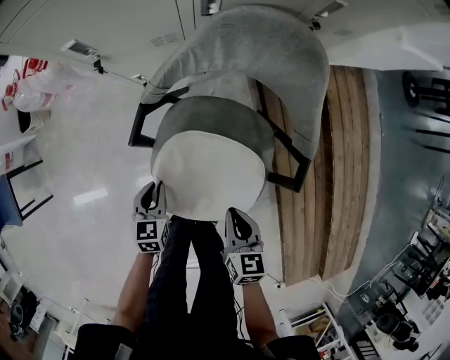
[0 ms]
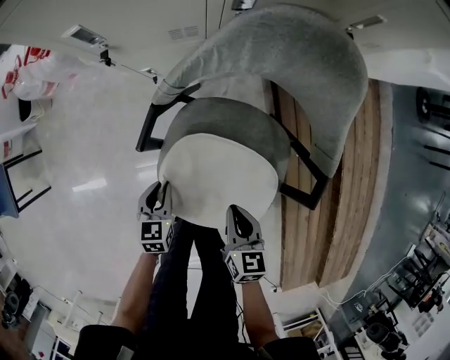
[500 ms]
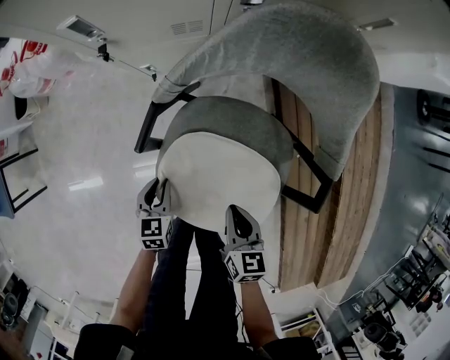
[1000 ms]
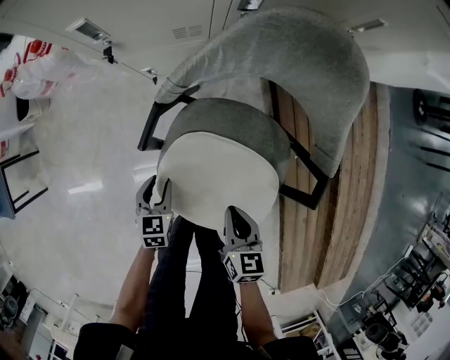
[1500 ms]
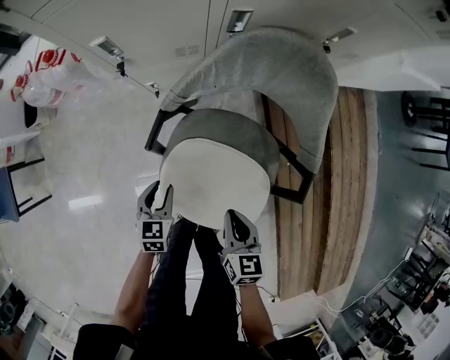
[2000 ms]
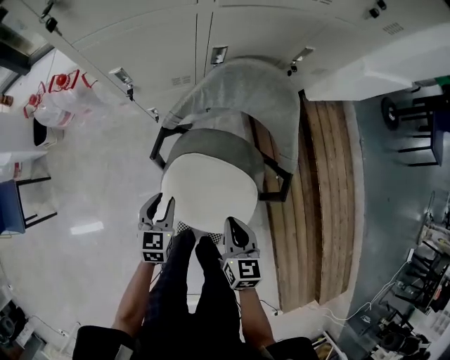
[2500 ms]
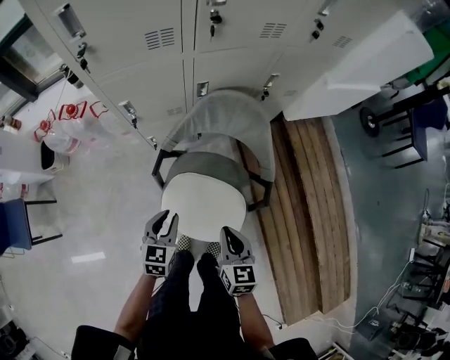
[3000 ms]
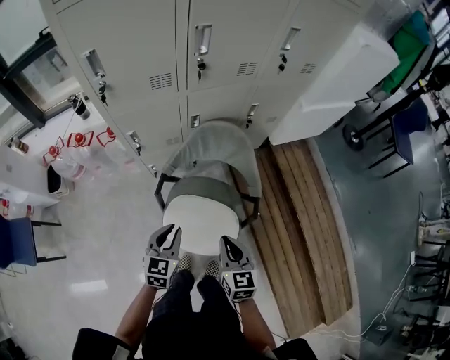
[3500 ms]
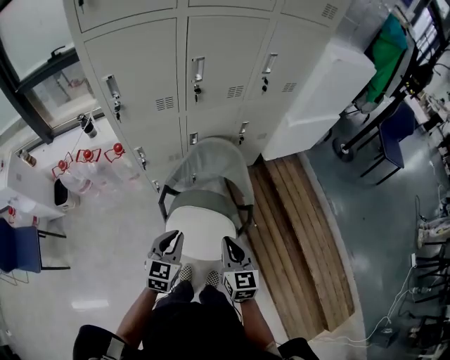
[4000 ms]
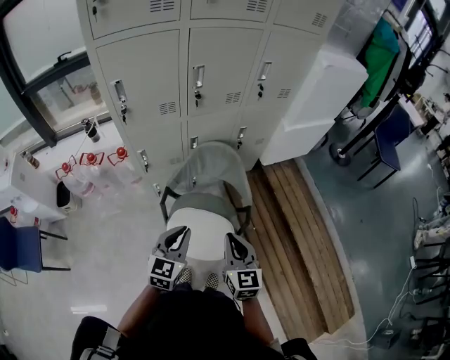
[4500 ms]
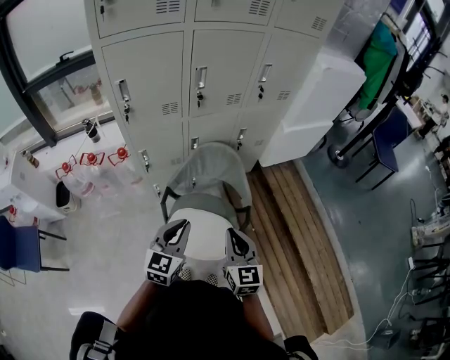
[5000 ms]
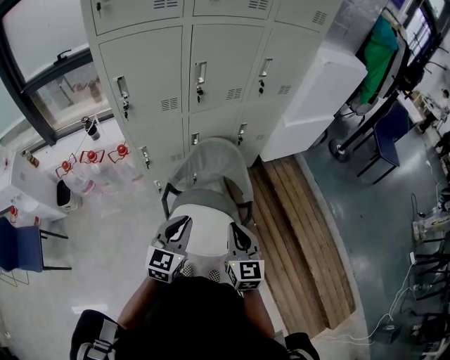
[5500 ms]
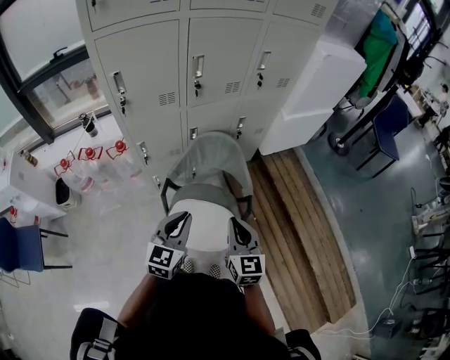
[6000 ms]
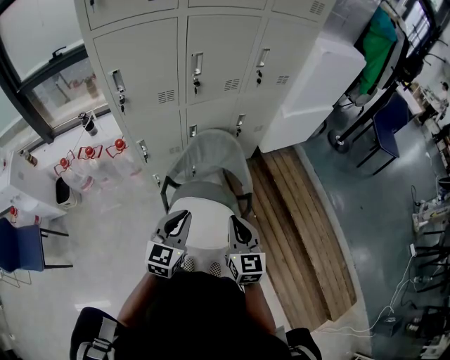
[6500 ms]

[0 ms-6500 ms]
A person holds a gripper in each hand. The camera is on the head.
0 ms to 2000 ms: The left gripper goes downward and returns, some 10 cm each way, and opens its fingers, while the right gripper moves approximately 5 cm downward and comes back.
2000 ms to 4500 ms: The two grippers go roughly 40 cm upward. The left gripper changes its angle by approximately 30 degrees, and closes up. Meanwhile the right gripper changes its angle by roughly 30 degrees.
4500 ms to 6500 ms: The grippers stay close to where they were, moving slightly.

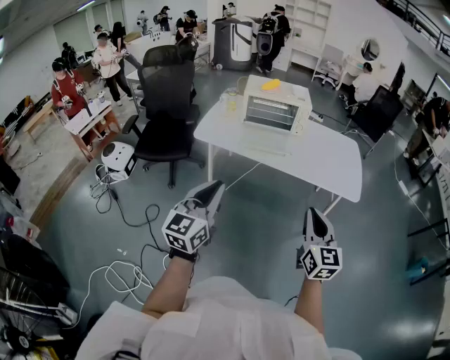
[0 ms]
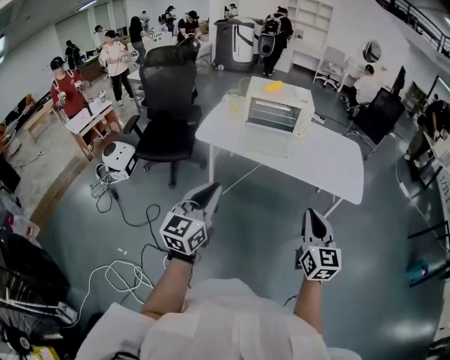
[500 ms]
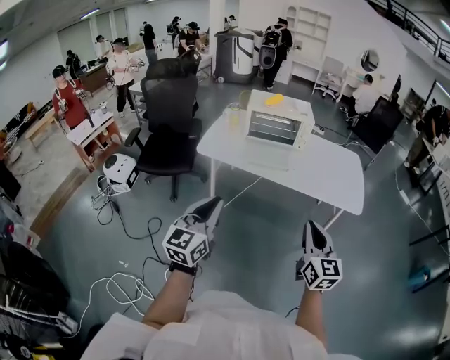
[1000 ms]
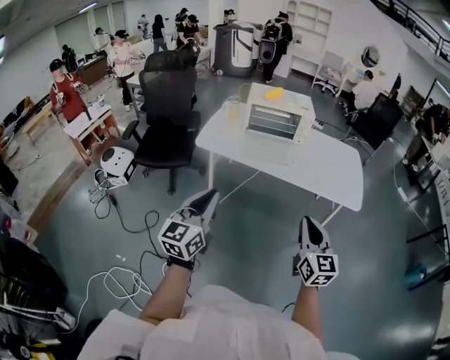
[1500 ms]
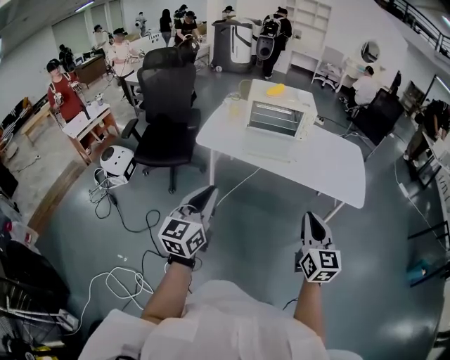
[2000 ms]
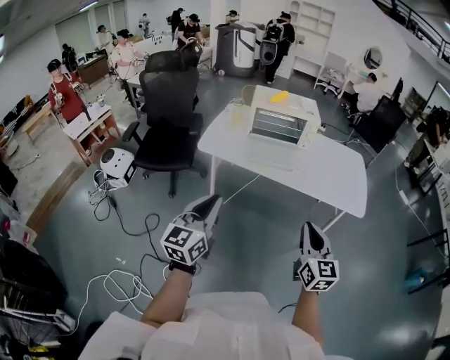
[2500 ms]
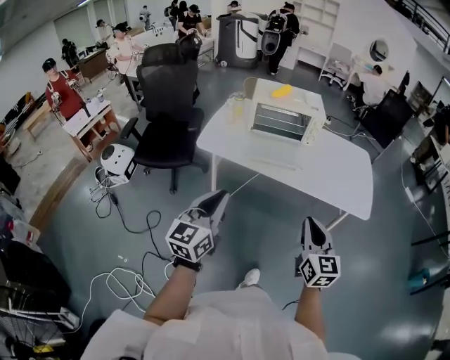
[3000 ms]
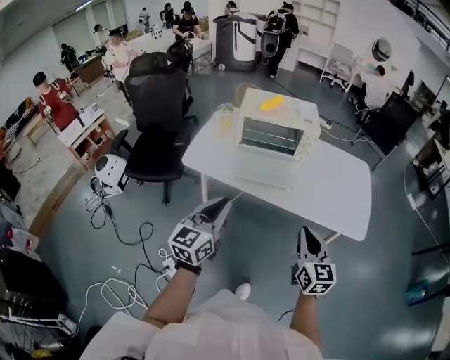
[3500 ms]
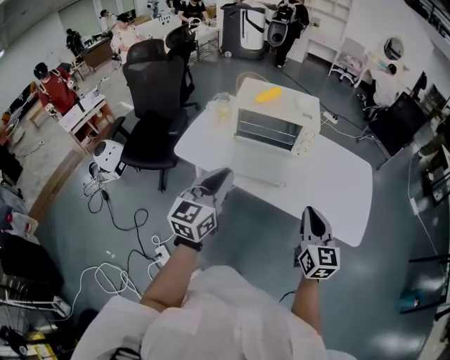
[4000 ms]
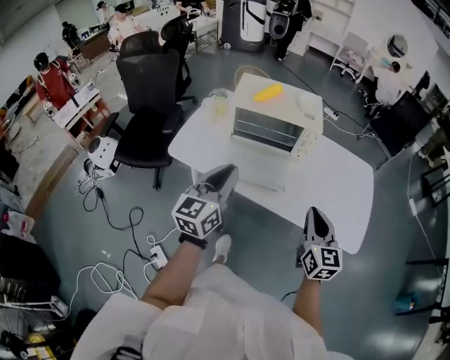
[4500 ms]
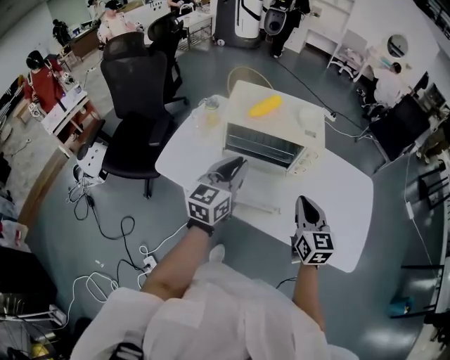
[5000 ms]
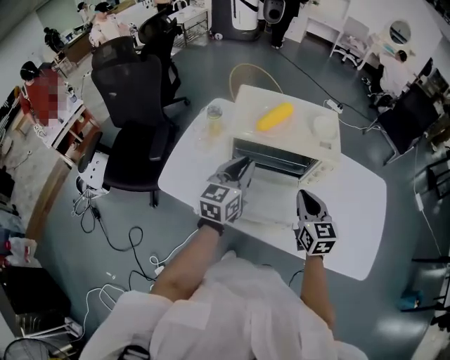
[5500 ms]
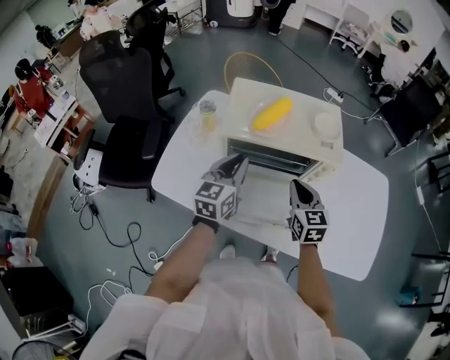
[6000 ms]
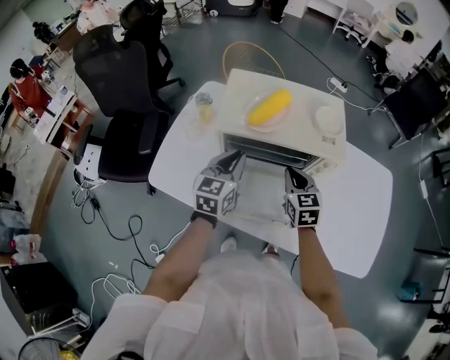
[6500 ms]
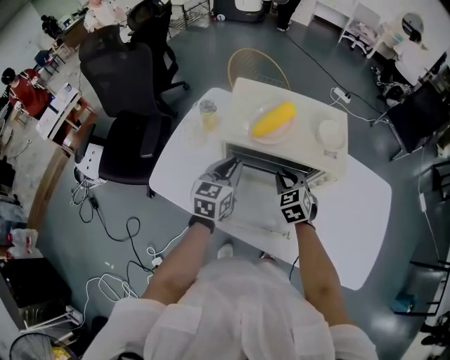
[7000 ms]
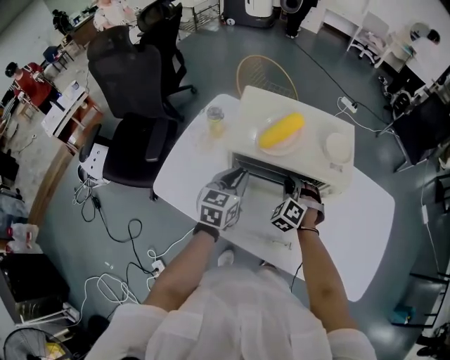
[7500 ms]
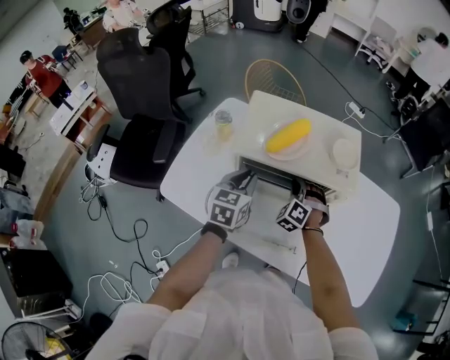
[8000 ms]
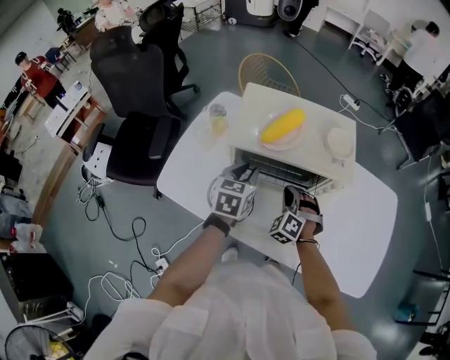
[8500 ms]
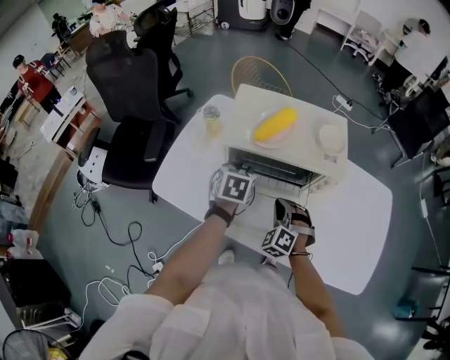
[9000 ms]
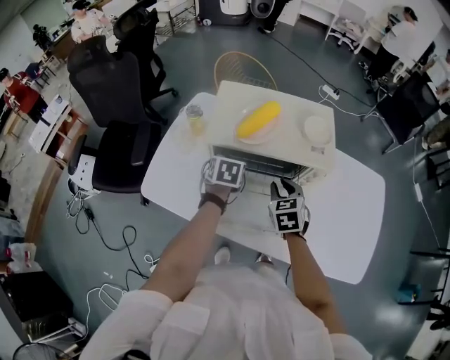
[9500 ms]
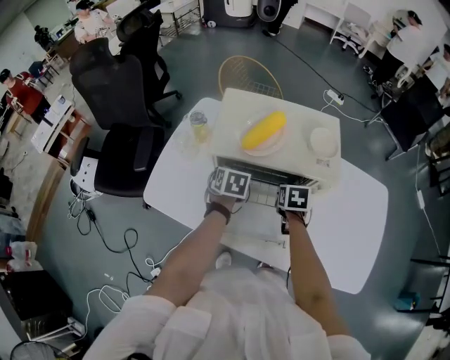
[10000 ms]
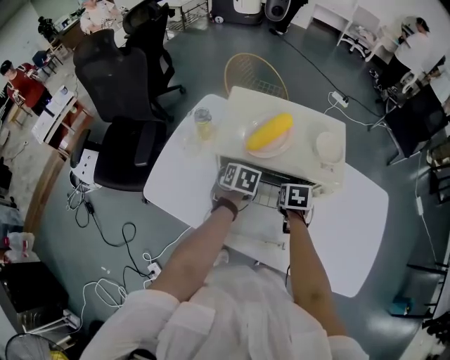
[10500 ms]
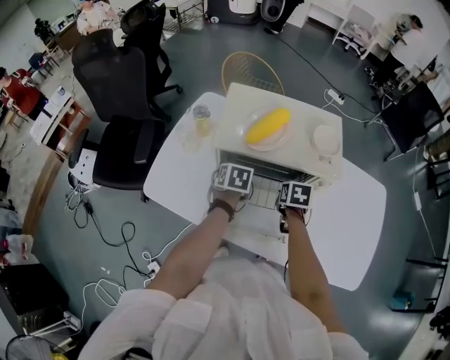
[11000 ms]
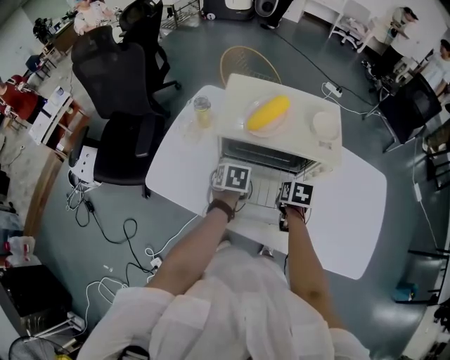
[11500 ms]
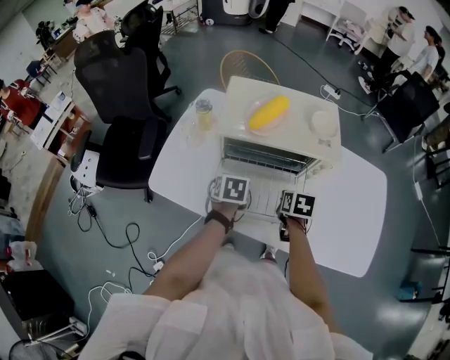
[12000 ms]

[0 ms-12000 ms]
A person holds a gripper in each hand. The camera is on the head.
0 ms to 2000 ms: The left gripper travels to the left by some 5 cm.
2000 ms to 4000 ms: The left gripper heads forward and to the right, covering about 30 cm; the right gripper heads forward, covering approximately 30 cm.
4000 ms to 6000 ms: Both grippers move forward, some 35 cm.
6000 ms to 8000 ms: The left gripper is displaced downward by roughly 5 cm, while the right gripper goes about 15 cm forward and downward, and rotates around the line of its fingers by some 60 degrees, counterclockwise from behind.
8000 ms to 10000 ms: The right gripper shifts roughly 5 cm to the right, travels backward and back again, approximately 10 cm each way, and twists approximately 70 degrees clockwise, seen from behind, while the left gripper shifts approximately 10 cm downward, and changes its angle by some 30 degrees.
10000 ms to 12000 ms: The two grippers go approximately 10 cm backward.

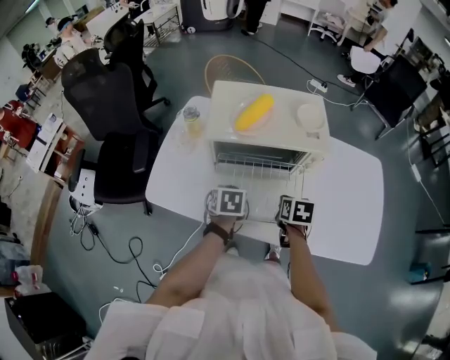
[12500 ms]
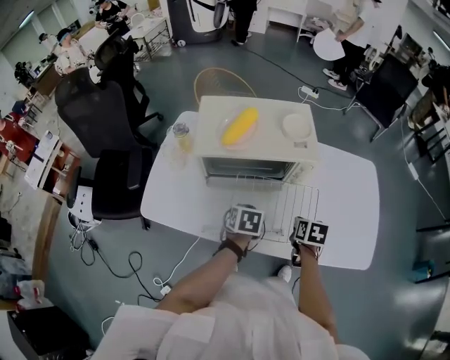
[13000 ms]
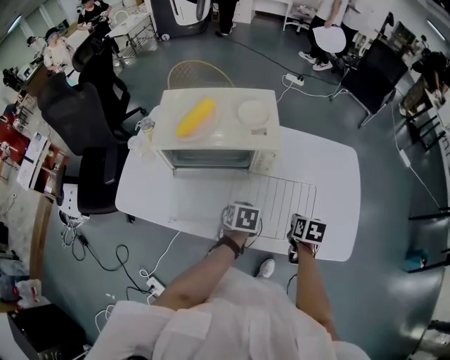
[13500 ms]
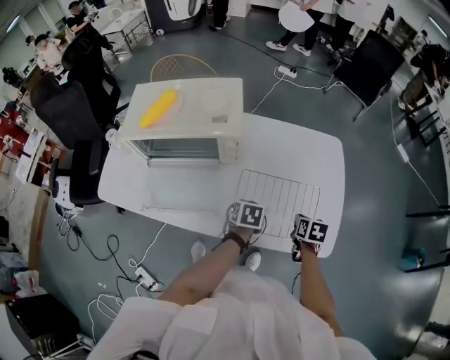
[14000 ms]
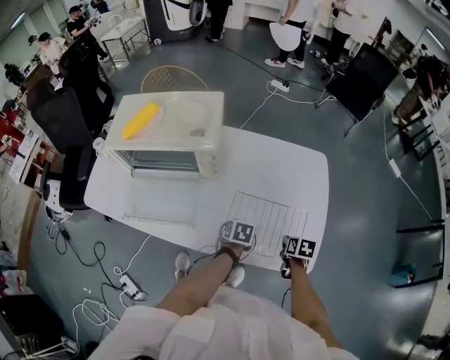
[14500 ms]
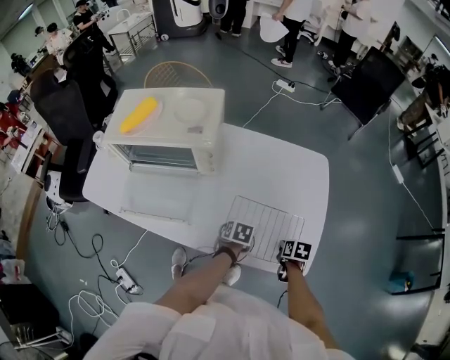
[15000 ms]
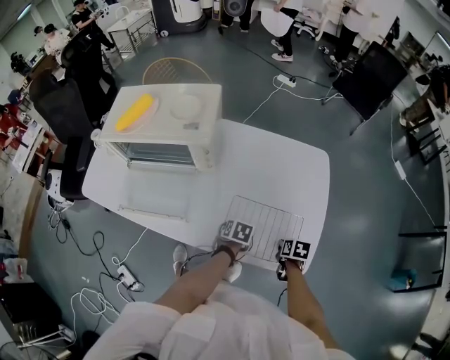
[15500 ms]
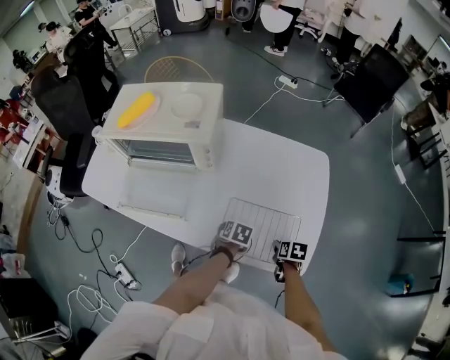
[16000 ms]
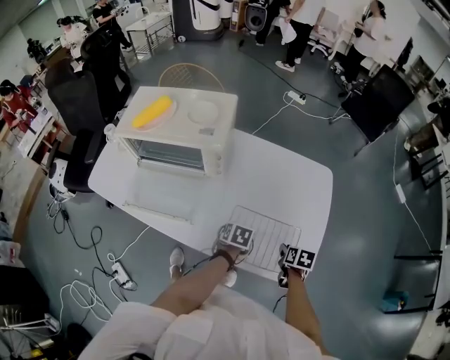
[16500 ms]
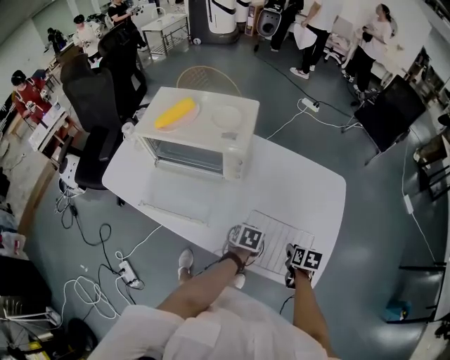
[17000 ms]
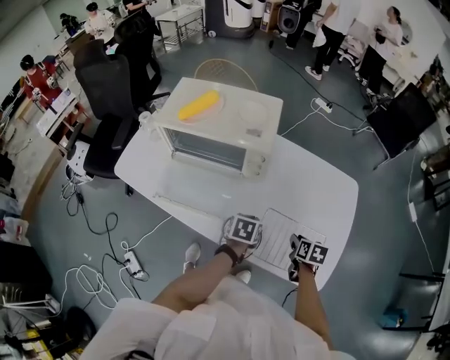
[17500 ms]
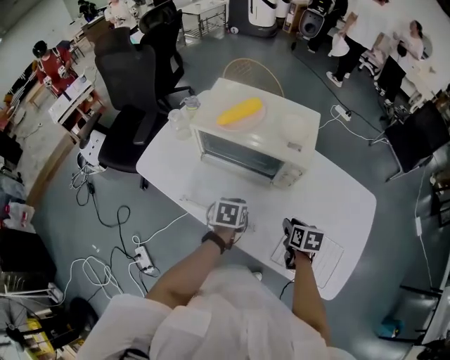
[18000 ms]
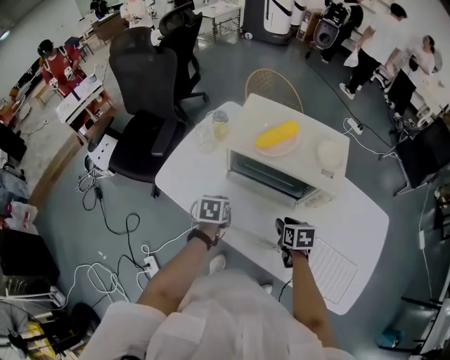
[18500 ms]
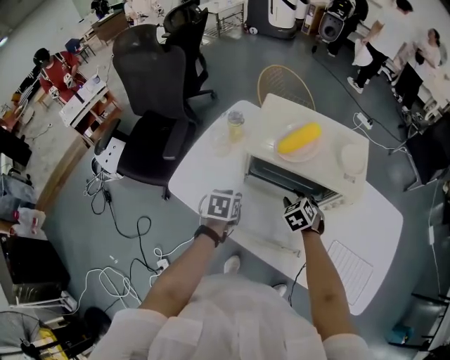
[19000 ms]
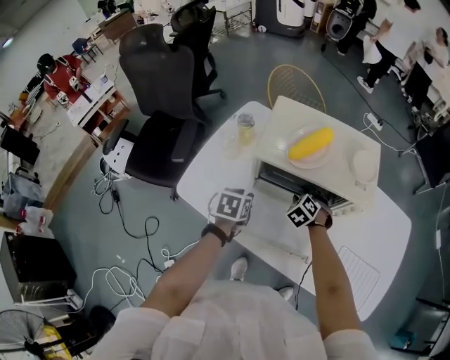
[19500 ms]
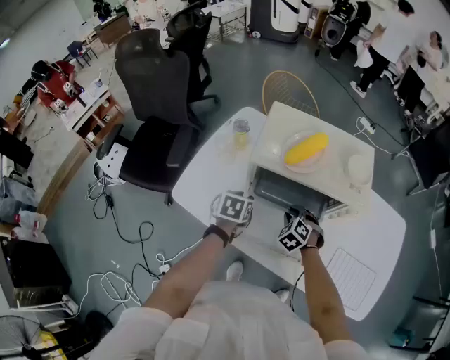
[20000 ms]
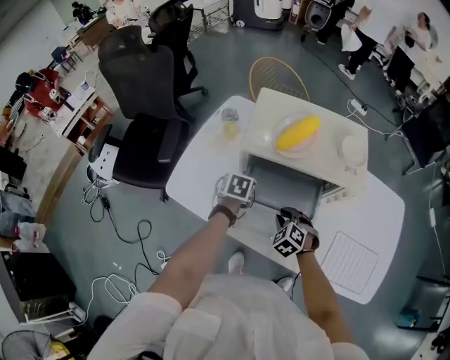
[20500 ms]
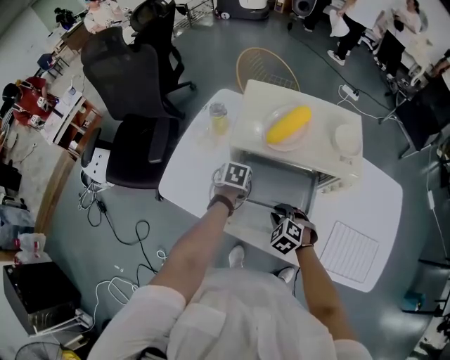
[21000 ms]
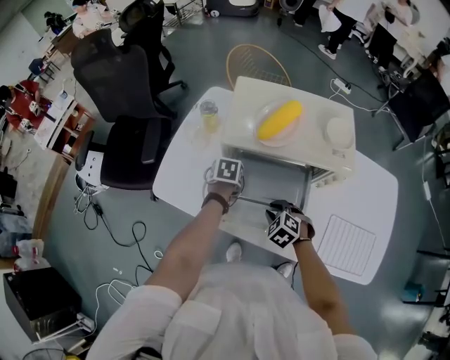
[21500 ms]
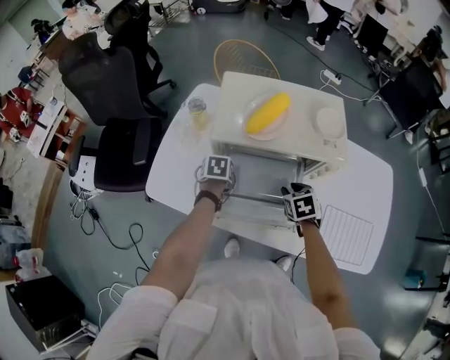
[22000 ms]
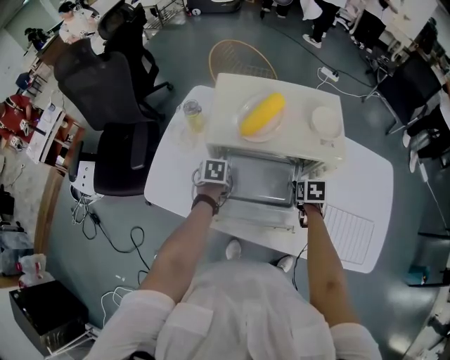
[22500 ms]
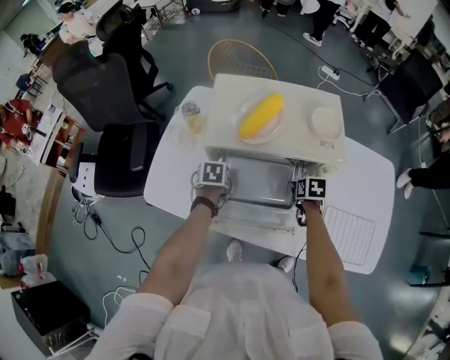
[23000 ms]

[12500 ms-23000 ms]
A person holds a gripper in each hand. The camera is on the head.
12500 ms to 14500 ms: Both grippers are carried to the right, roughly 50 cm.
14500 ms to 16500 ms: The grippers stay close to where they were, moving slightly.
16500 ms to 19000 ms: The two grippers travel together, to the left, some 60 cm. The right gripper rolls counterclockwise, seen from behind, by approximately 70 degrees; the left gripper rotates approximately 20 degrees.
19000 ms to 21000 ms: The left gripper is displaced forward and downward by roughly 10 cm. Meanwhile the right gripper travels backward by about 10 cm.
21000 ms to 23000 ms: The right gripper heads to the right and forward, covering about 20 cm, and rotates around the line of its fingers by approximately 70 degrees, clockwise from behind.
